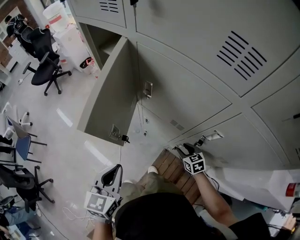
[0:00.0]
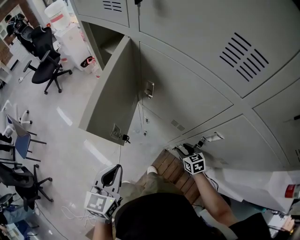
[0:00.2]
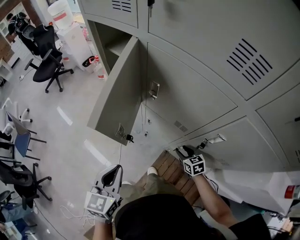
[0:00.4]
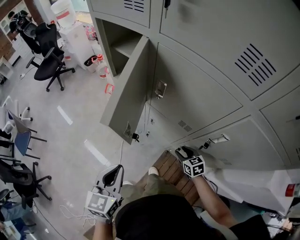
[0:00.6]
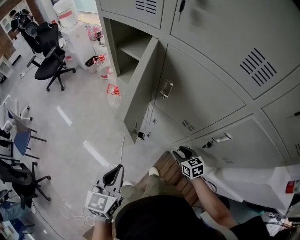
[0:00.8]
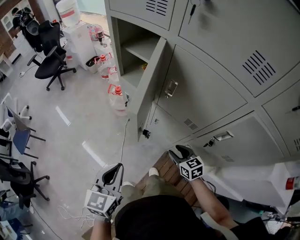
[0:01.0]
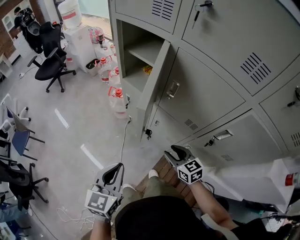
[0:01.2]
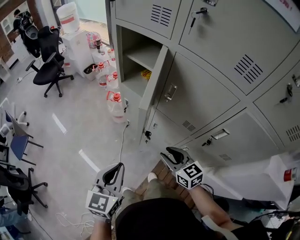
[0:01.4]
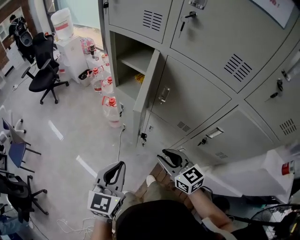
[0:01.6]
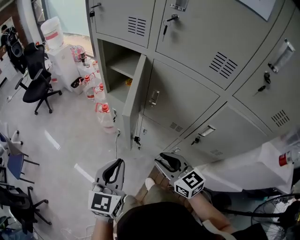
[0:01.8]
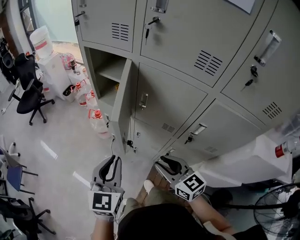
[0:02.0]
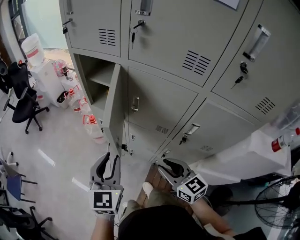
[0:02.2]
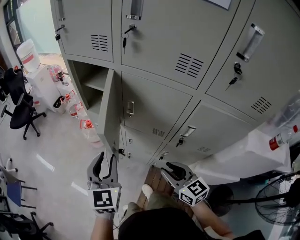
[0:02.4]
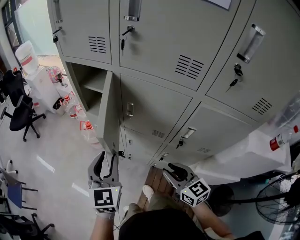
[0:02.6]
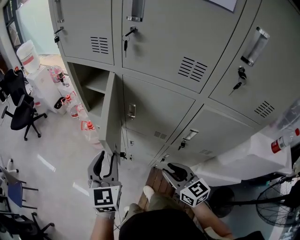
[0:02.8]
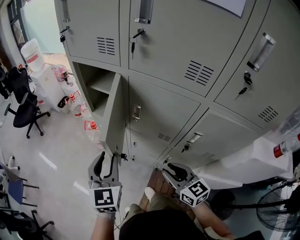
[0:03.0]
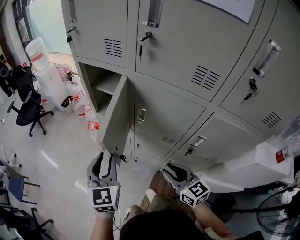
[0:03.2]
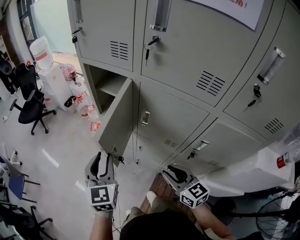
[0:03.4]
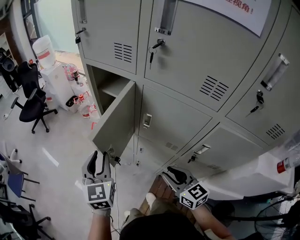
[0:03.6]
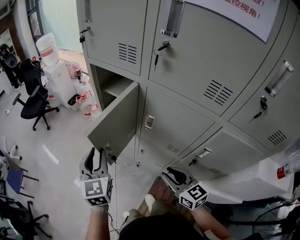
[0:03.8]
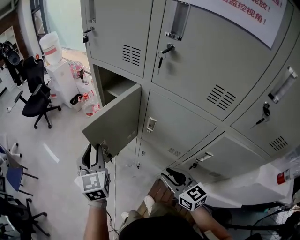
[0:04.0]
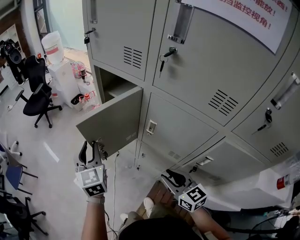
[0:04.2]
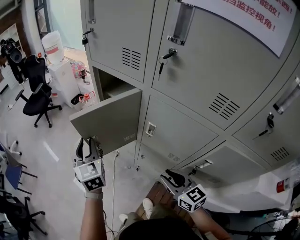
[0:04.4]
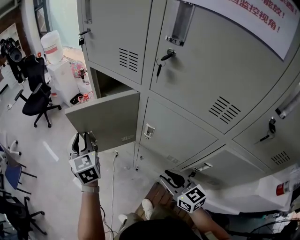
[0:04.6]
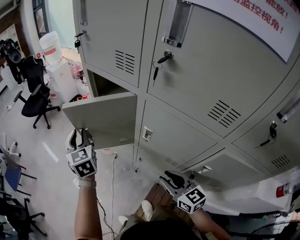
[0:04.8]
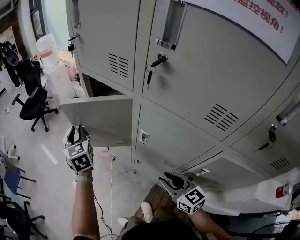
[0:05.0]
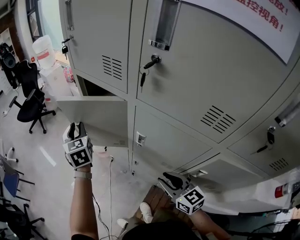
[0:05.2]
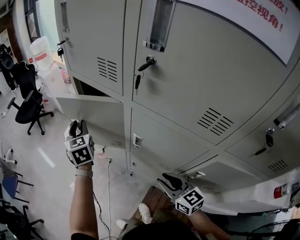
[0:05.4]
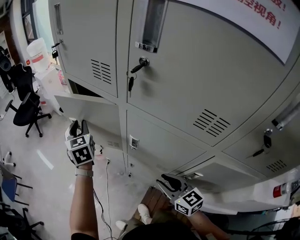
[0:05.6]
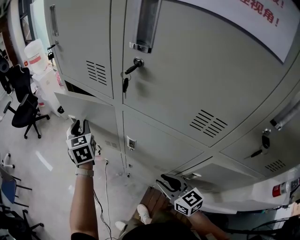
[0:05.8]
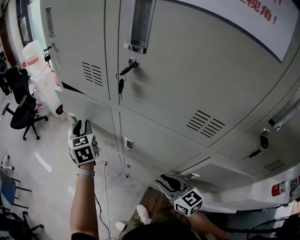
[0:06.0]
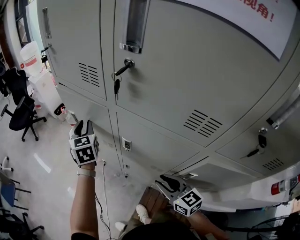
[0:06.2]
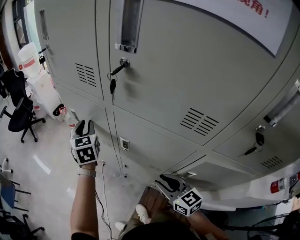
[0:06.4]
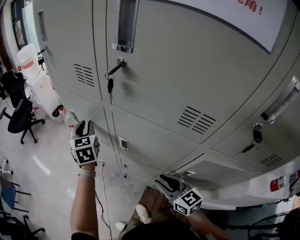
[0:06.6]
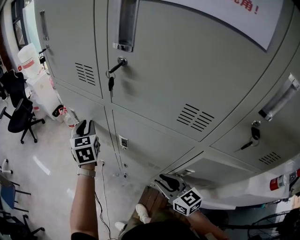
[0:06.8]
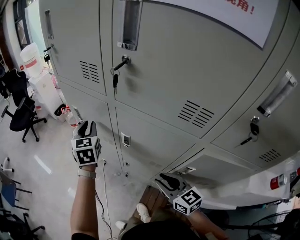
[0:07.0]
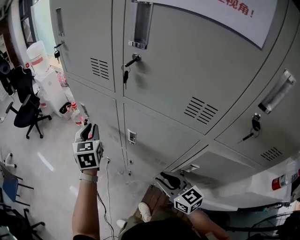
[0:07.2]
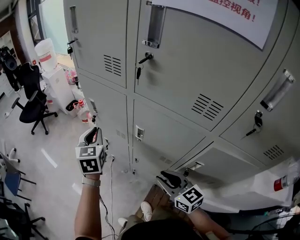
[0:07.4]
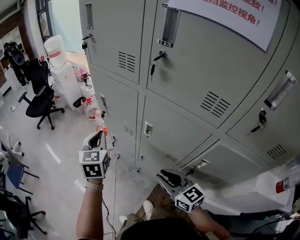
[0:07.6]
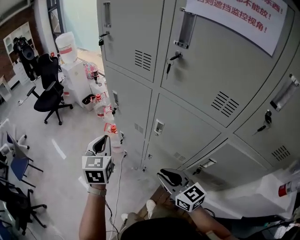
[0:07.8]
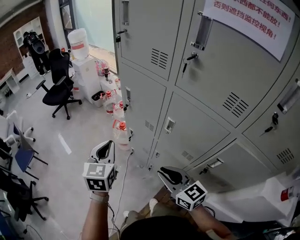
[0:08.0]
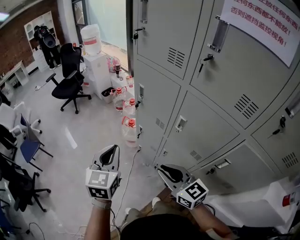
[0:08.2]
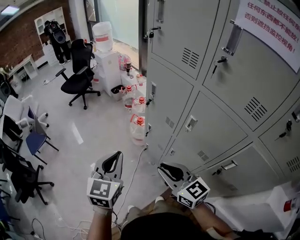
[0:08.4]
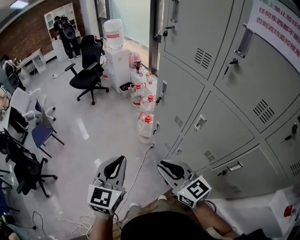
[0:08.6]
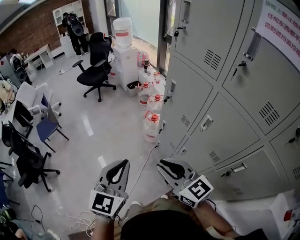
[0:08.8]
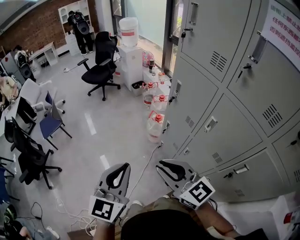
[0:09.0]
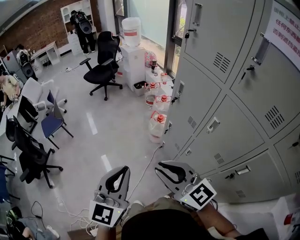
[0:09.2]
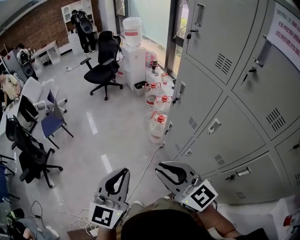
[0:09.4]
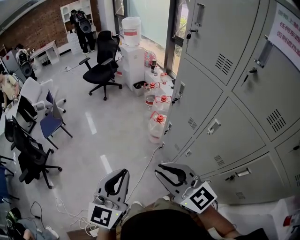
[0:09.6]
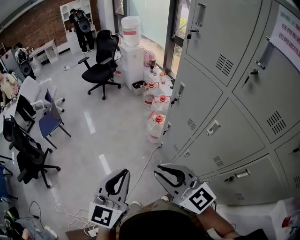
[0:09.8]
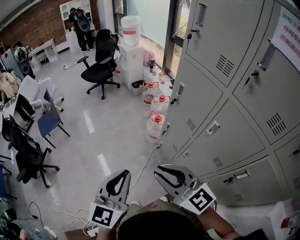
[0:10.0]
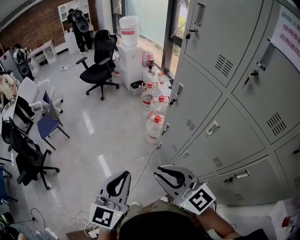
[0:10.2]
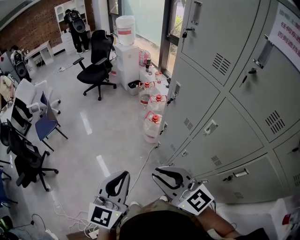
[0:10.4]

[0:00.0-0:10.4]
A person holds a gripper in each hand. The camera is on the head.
0:00.0 to 0:01.4: The right gripper shifts approximately 30 cm to the left and upward, and turns by approximately 20 degrees; the left gripper heads to the left, covering approximately 10 cm.
0:01.4 to 0:03.0: The right gripper is displaced upward and to the right by some 10 cm; the left gripper travels forward, upward and to the right by about 15 cm, and opens its fingers.
0:03.0 to 0:04.4: The left gripper is displaced forward and to the left by approximately 15 cm, and changes its angle by some 30 degrees, while the right gripper travels forward by roughly 10 cm.
0:04.4 to 0:06.0: The right gripper is displaced to the right by some 5 cm. The left gripper shifts roughly 20 cm to the right and forward.
0:06.0 to 0:07.4: The right gripper shifts by about 5 cm, while the left gripper is displaced backward by approximately 10 cm.
0:07.4 to 0:09.0: The right gripper moves to the left, roughly 25 cm, and swivels approximately 40 degrees. Meanwhile the left gripper moves backward and to the left, about 35 cm.
0:09.0 to 0:10.4: The grippers move only a little.

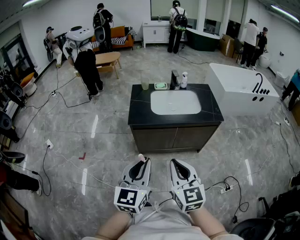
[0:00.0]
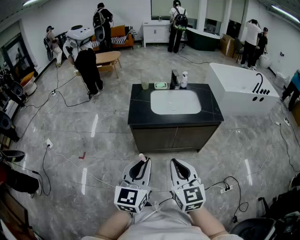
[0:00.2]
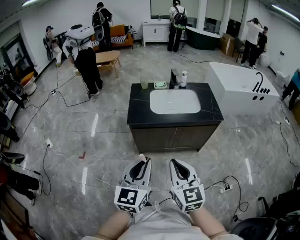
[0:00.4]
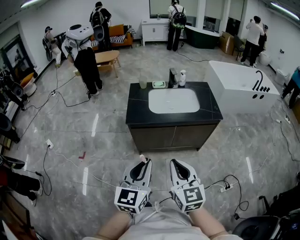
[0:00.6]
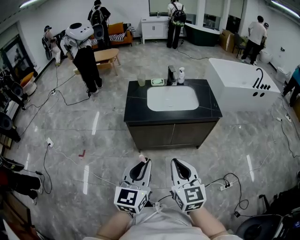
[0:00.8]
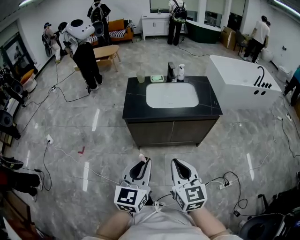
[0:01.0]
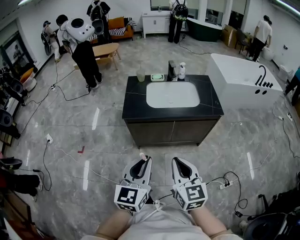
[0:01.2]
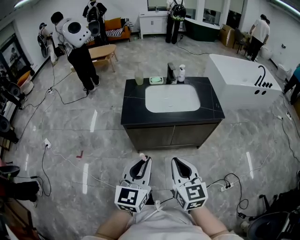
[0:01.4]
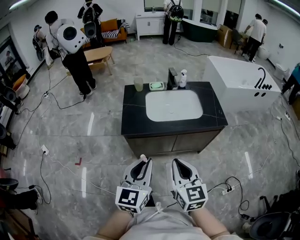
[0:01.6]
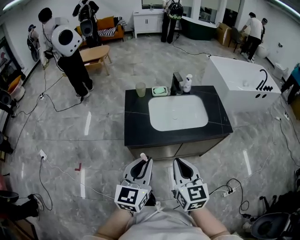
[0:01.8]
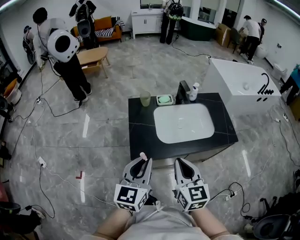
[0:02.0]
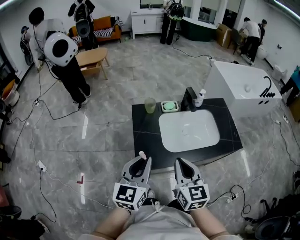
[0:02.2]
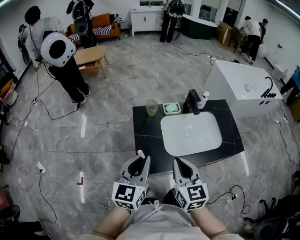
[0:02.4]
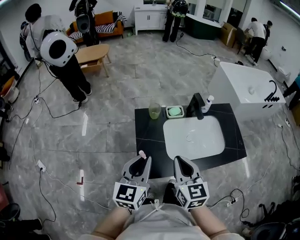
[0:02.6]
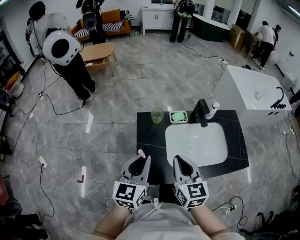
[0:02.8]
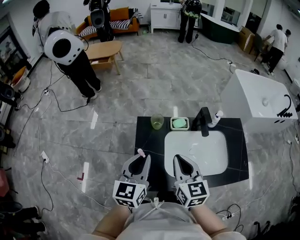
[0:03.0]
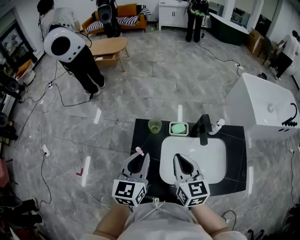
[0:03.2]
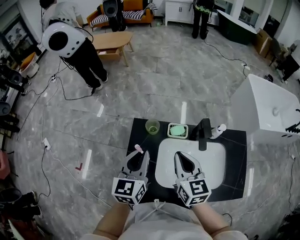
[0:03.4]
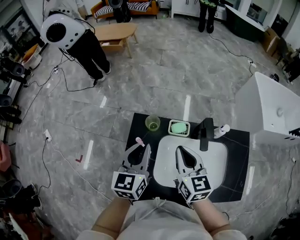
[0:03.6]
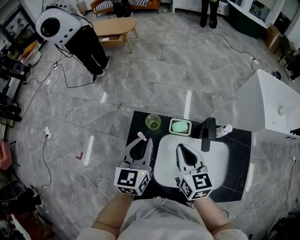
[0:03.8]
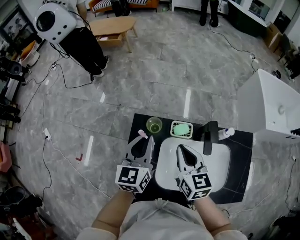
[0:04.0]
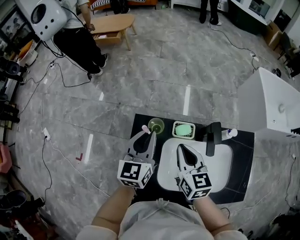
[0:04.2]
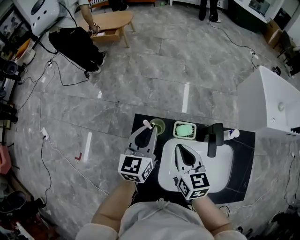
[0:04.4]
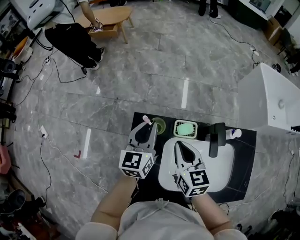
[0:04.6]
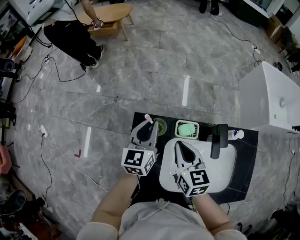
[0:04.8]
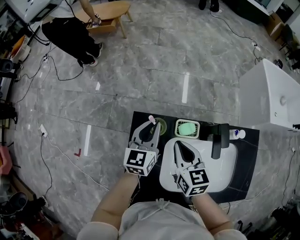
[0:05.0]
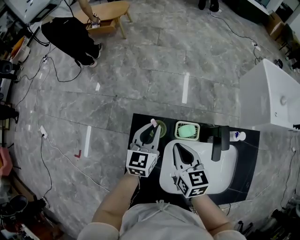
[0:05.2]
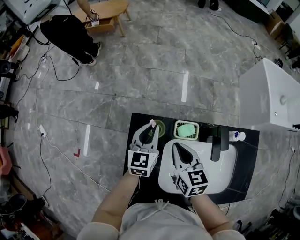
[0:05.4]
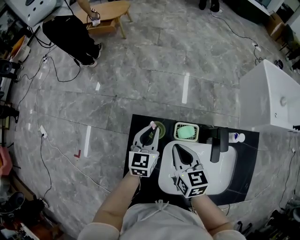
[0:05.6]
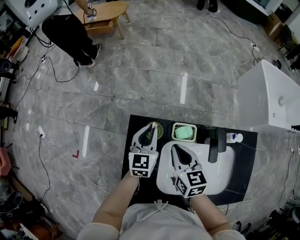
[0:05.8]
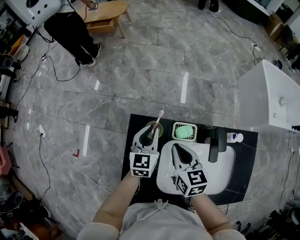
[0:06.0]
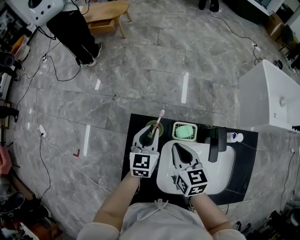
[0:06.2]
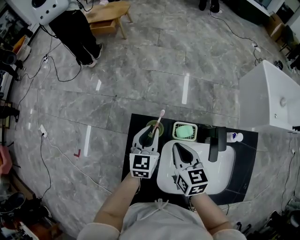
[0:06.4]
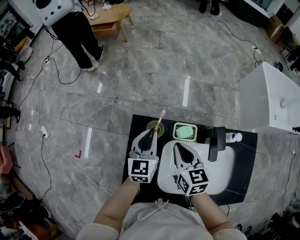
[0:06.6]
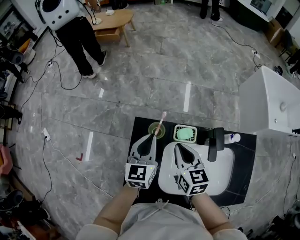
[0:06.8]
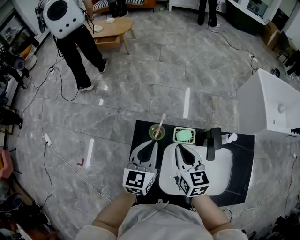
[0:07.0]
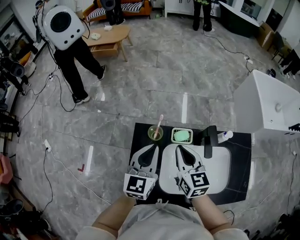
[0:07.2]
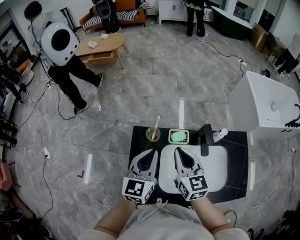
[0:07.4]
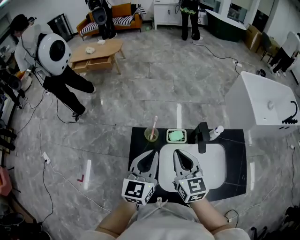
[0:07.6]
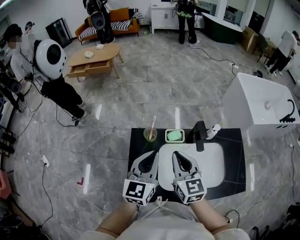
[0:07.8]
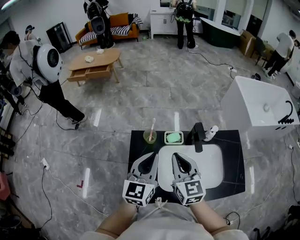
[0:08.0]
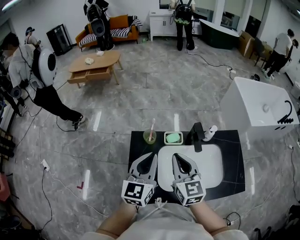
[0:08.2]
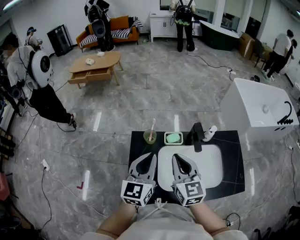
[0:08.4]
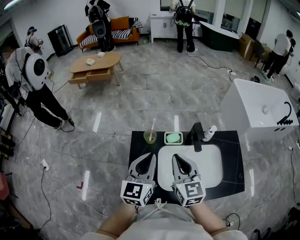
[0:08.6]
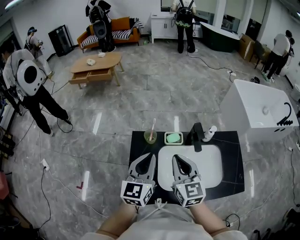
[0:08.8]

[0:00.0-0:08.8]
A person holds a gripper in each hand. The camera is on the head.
0:00.0 to 0:01.4: Both grippers travel together forward, roughly 5 cm.
0:01.4 to 0:03.0: The pair of grippers is taken forward, some 50 cm.
0:03.0 to 0:04.4: The left gripper goes about 20 cm forward. Meanwhile the right gripper shifts roughly 15 cm forward and downward.
0:04.4 to 0:05.8: The right gripper heads downward, covering some 5 cm. Meanwhile the left gripper shifts approximately 10 cm downward.
0:05.8 to 0:07.4: The left gripper shifts roughly 20 cm upward and backward. Meanwhile the right gripper is displaced upward by about 10 cm.
0:07.4 to 0:08.8: Both grippers travel together backward, roughly 5 cm.

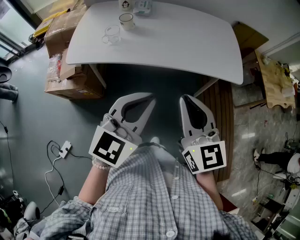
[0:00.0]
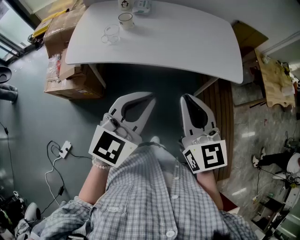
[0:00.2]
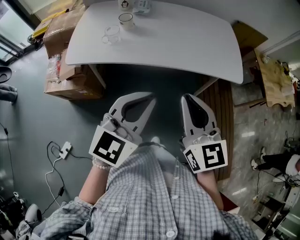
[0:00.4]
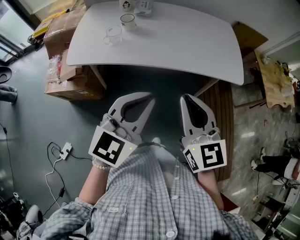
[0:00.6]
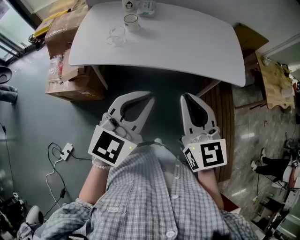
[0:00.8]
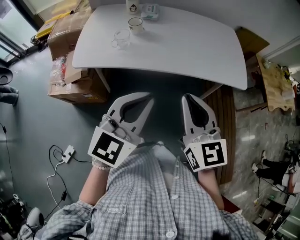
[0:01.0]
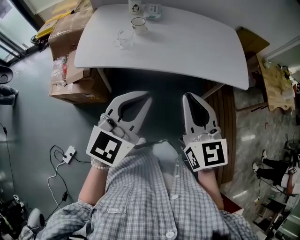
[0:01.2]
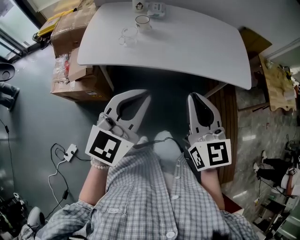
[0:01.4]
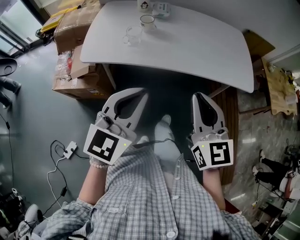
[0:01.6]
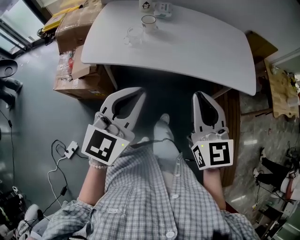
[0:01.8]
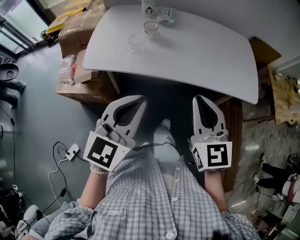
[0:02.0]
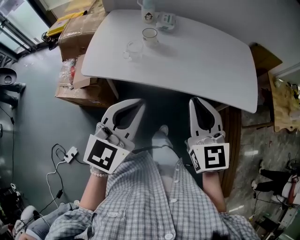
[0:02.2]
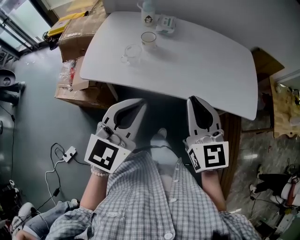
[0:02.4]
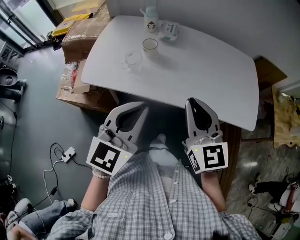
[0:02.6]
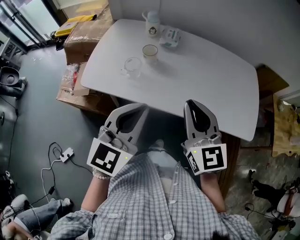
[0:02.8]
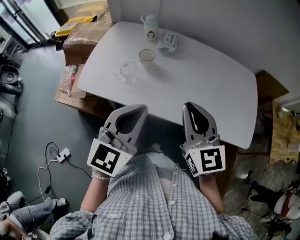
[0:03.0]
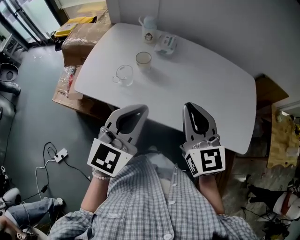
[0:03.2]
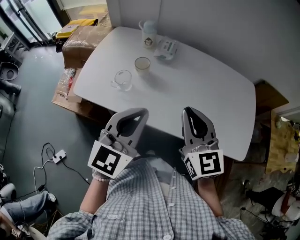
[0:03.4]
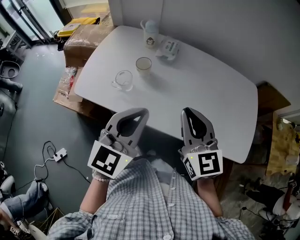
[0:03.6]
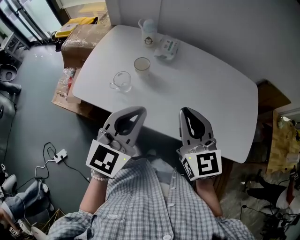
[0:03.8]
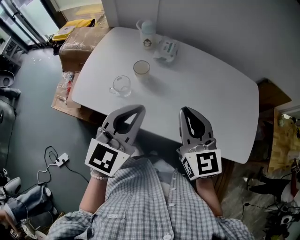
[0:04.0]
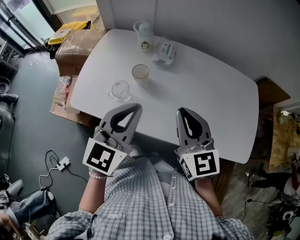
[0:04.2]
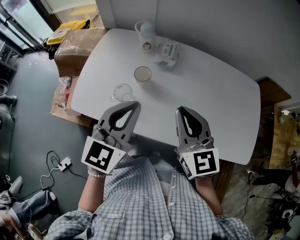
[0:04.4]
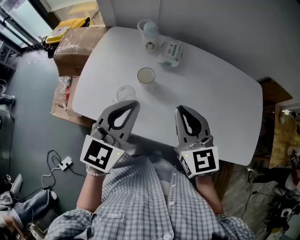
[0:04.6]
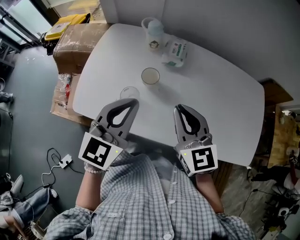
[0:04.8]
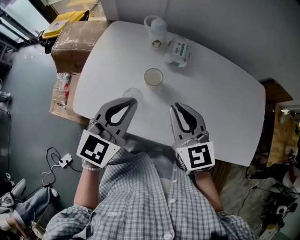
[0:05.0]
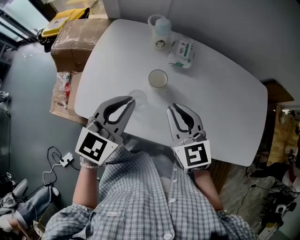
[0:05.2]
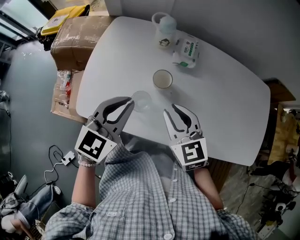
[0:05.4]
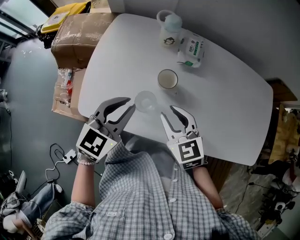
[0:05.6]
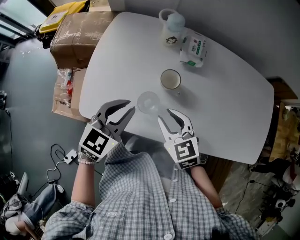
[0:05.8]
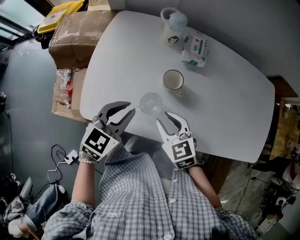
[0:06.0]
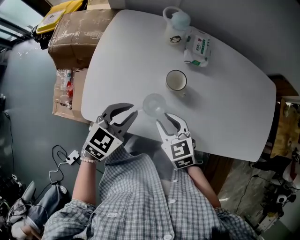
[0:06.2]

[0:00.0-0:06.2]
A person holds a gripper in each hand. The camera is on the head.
0:00.0 to 0:01.6: The right gripper goes roughly 5 cm to the left. The left gripper shifts about 10 cm to the left.
0:01.6 to 0:03.2: Both grippers move forward, some 20 cm.
0:03.2 to 0:04.6: Both grippers travel together forward and to the left, about 15 cm.
0:04.6 to 0:06.2: Both grippers travel together downward and to the left, roughly 20 cm. The left gripper rotates some 30 degrees. The right gripper rotates some 30 degrees, and opens up.
